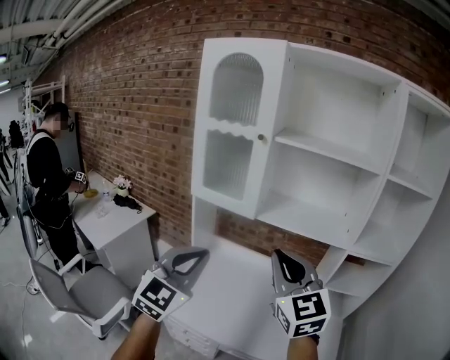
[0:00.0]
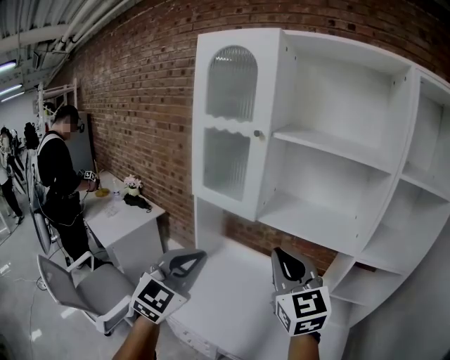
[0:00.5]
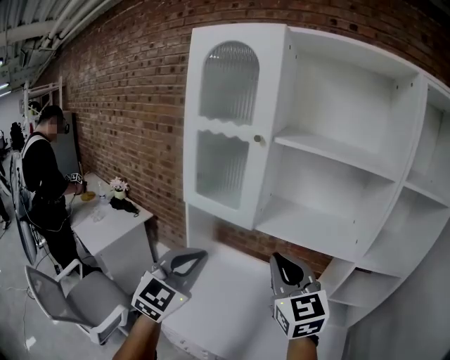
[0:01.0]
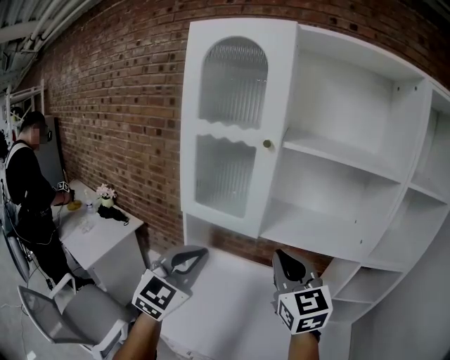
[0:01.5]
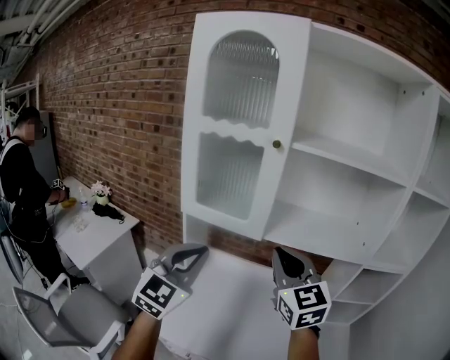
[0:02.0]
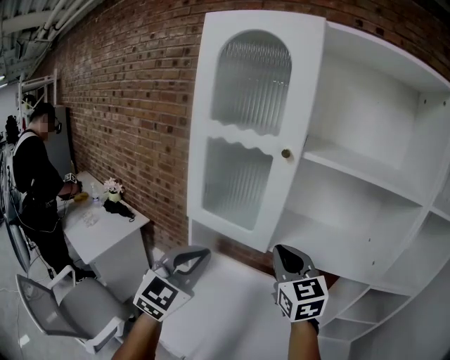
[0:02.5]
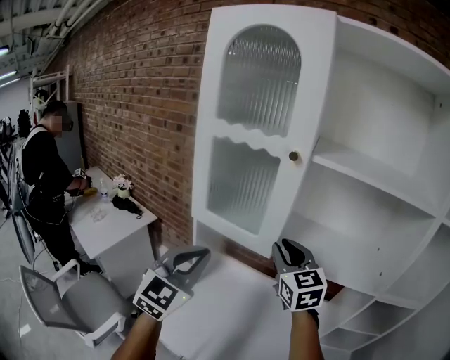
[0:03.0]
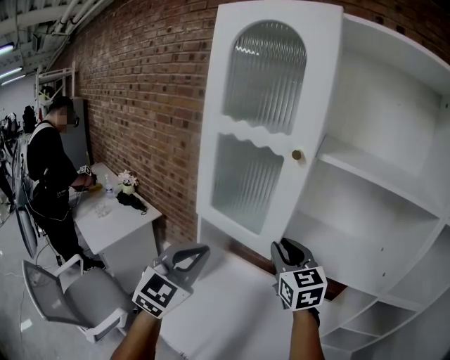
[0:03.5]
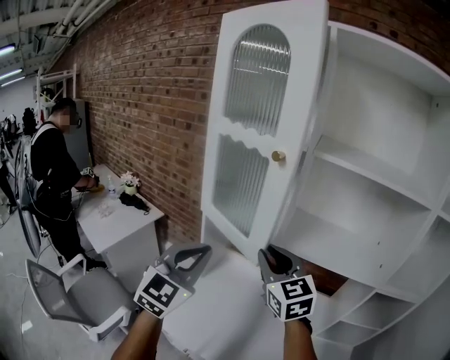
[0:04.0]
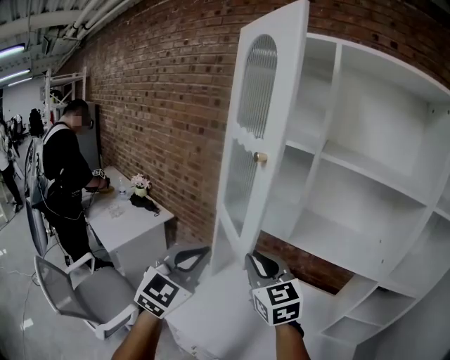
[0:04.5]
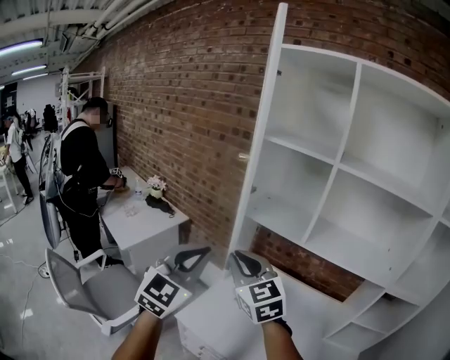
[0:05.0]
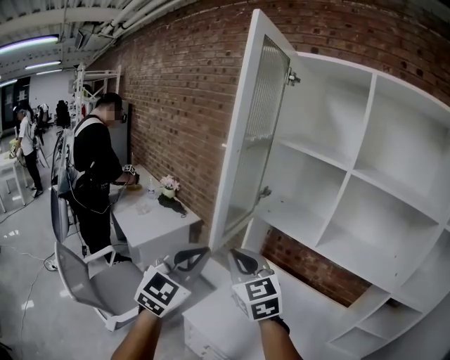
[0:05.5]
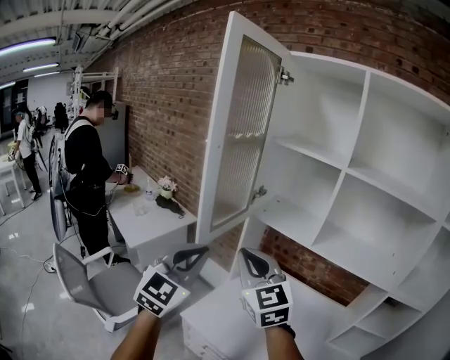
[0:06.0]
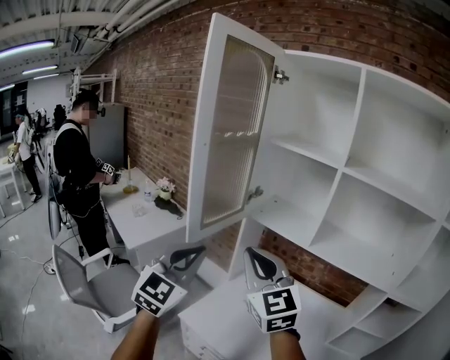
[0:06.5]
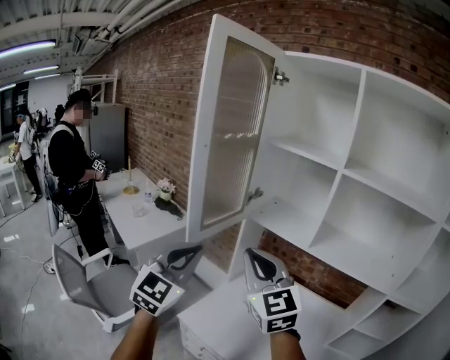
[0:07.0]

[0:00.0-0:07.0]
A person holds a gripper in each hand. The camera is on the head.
0:00.0 to 0:02.0: The two grippers go approximately 15 cm forward.
0:02.0 to 0:03.5: The right gripper is displaced forward by about 15 cm.
0:03.5 to 0:05.0: The left gripper goes some 15 cm backward and to the left. The right gripper moves to the left and backward, some 30 cm.
0:05.0 to 0:07.0: The right gripper goes some 5 cm upward.

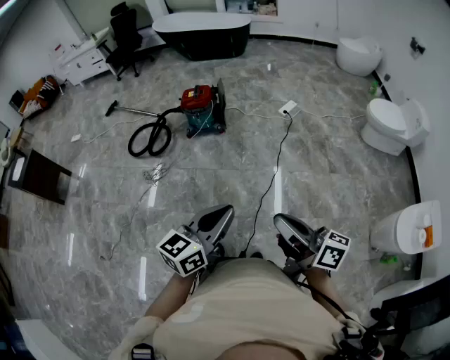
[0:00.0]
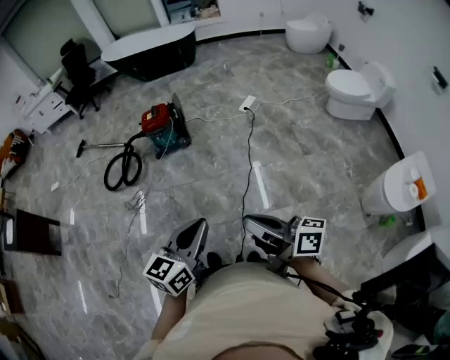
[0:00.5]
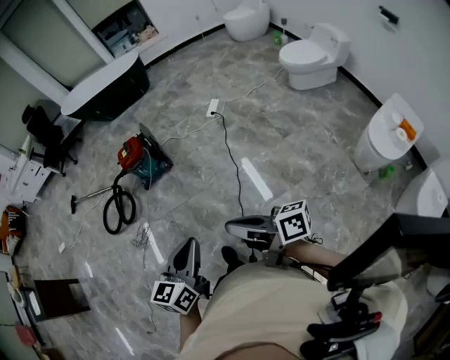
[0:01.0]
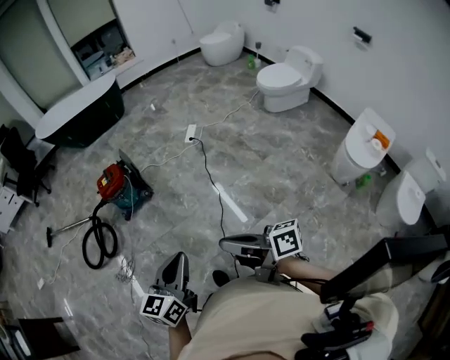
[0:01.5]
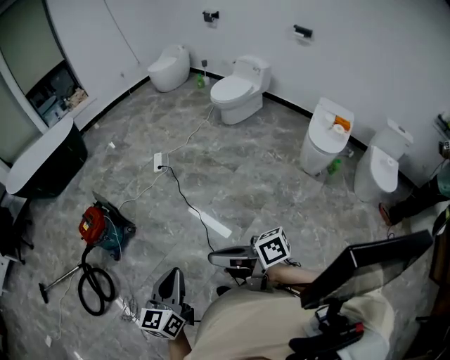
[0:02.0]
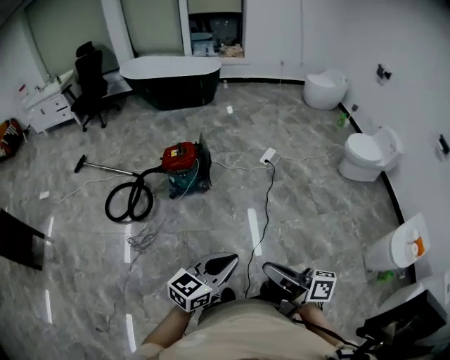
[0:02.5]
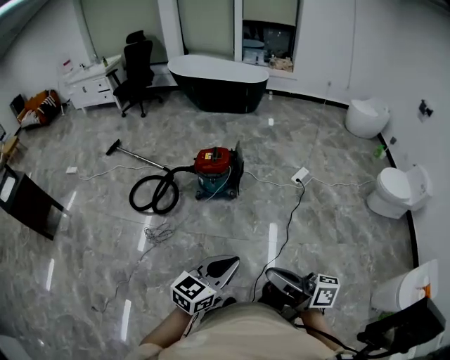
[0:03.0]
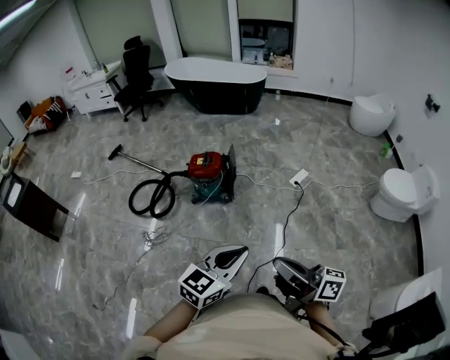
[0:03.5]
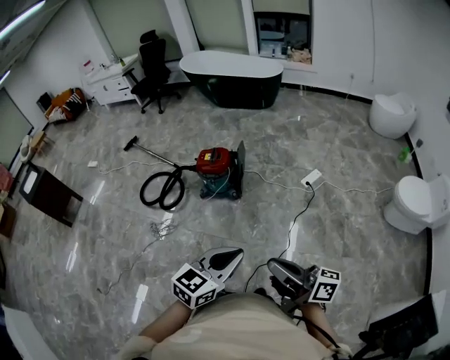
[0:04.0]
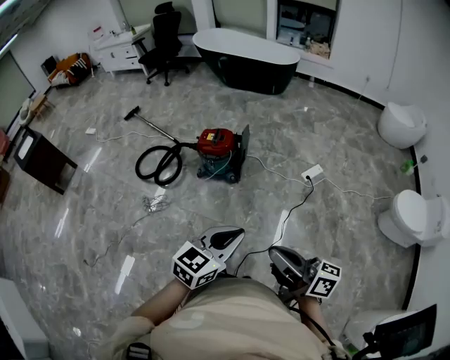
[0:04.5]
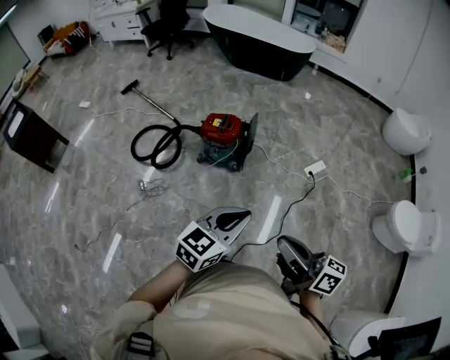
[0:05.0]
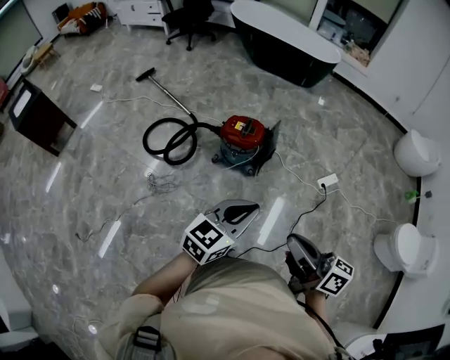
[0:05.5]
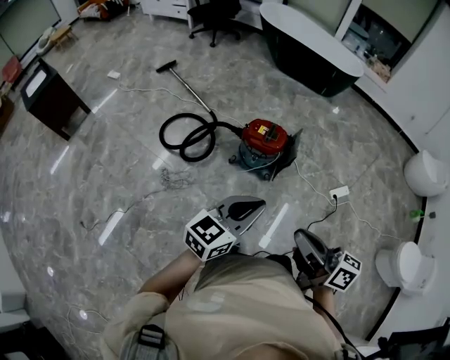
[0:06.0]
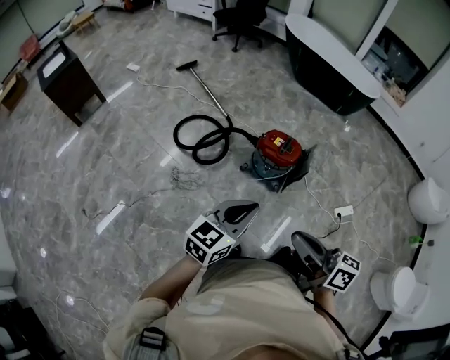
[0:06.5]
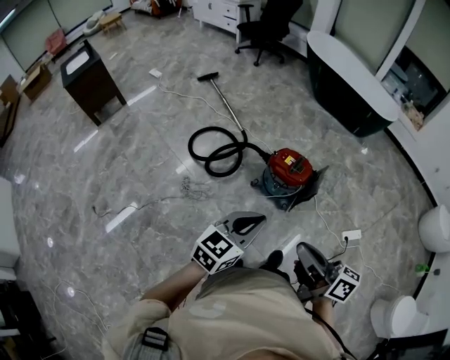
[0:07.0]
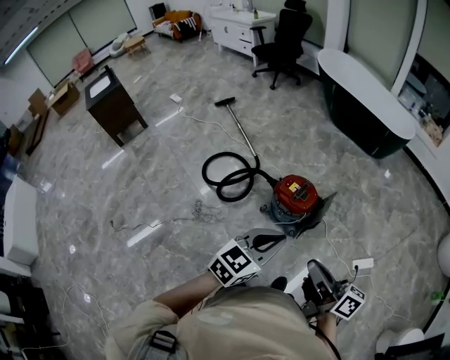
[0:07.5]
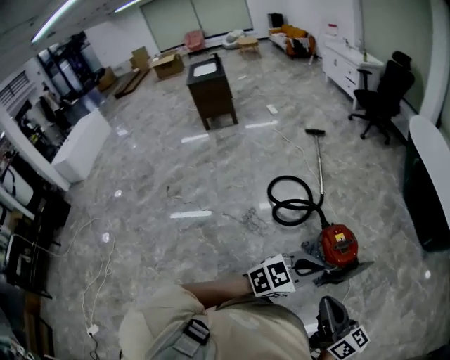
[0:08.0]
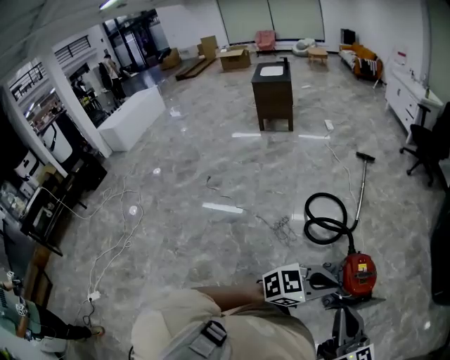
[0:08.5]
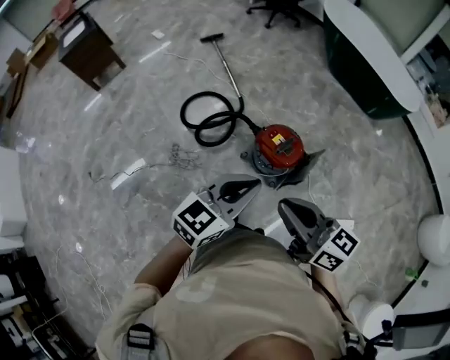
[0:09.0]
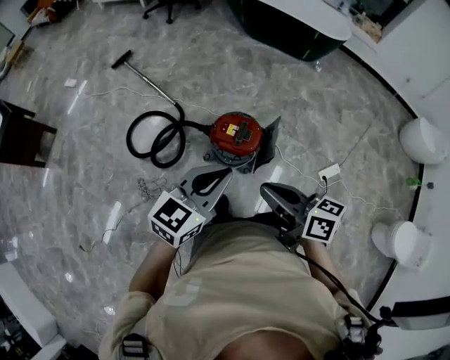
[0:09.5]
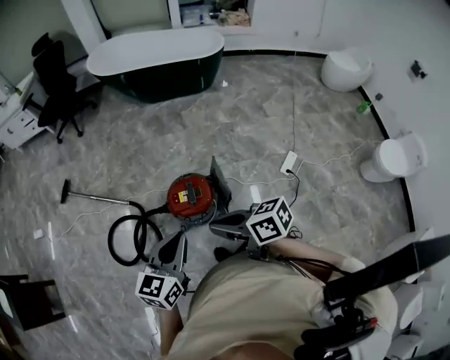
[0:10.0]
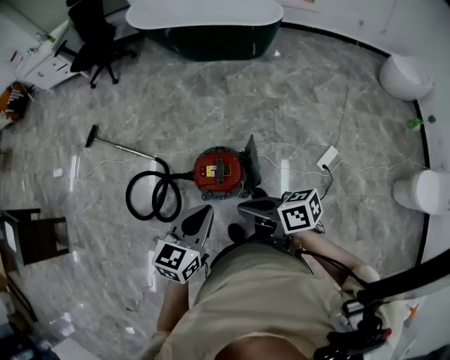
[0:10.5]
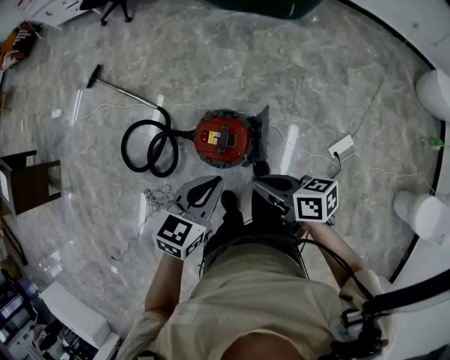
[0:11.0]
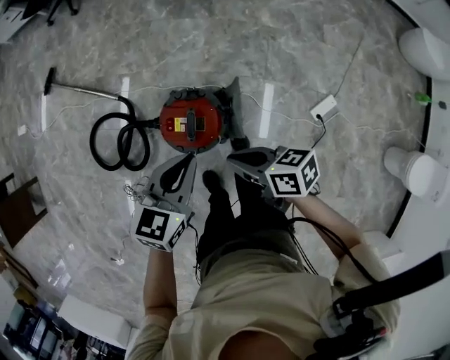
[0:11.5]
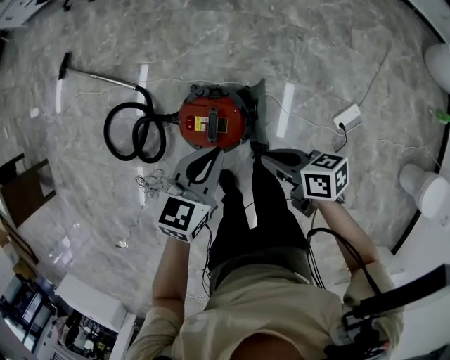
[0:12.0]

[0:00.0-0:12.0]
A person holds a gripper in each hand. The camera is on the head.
0:00.0 to 0:02.0: The left gripper goes approximately 15 cm forward and to the left, and turns by about 30 degrees, while the right gripper travels to the left and forward by roughly 15 cm.
0:02.0 to 0:04.0: The right gripper shifts by about 25 cm, and rotates approximately 30 degrees. The left gripper changes place by about 20 cm, and swivels about 30 degrees.
0:04.0 to 0:06.0: Both grippers travel together forward and to the left, approximately 35 cm.
0:06.0 to 0:08.0: The left gripper shifts by roughly 25 cm, and swivels roughly 30 degrees. The right gripper changes place by approximately 20 cm, and changes its angle by some 30 degrees.
0:08.0 to 0:10.0: The right gripper changes place by about 25 cm, and turns by some 40 degrees. The left gripper shifts by some 20 cm, and swivels roughly 30 degrees.
0:10.0 to 0:12.0: Both grippers travel together downward, forward and to the right, approximately 35 cm. The right gripper turns by roughly 20 degrees.

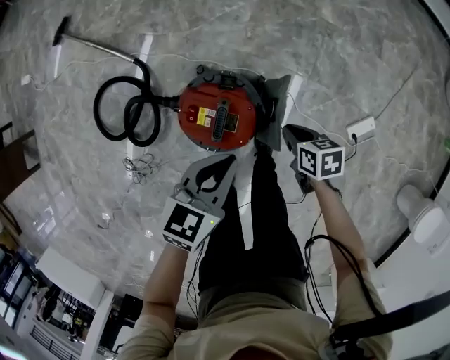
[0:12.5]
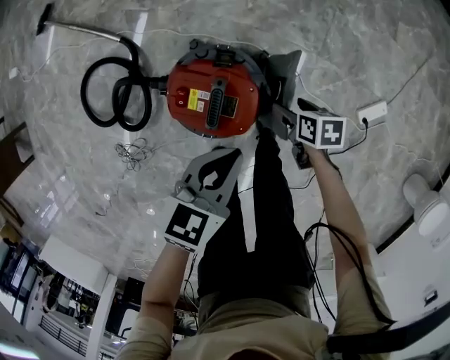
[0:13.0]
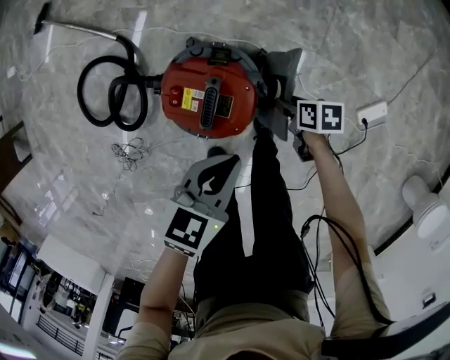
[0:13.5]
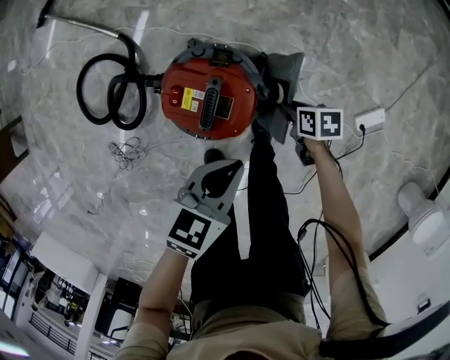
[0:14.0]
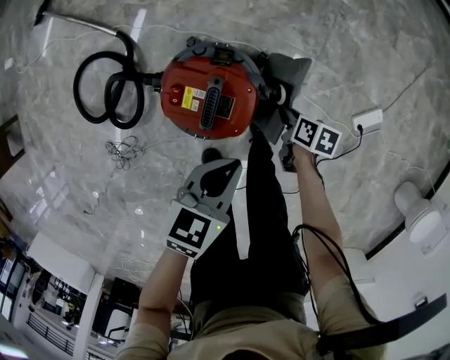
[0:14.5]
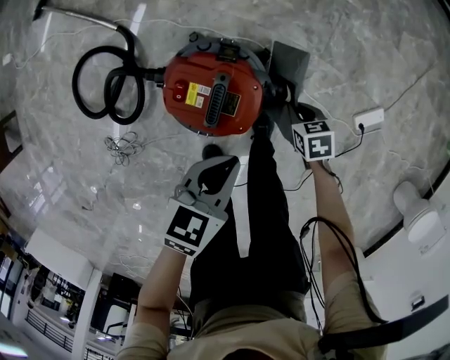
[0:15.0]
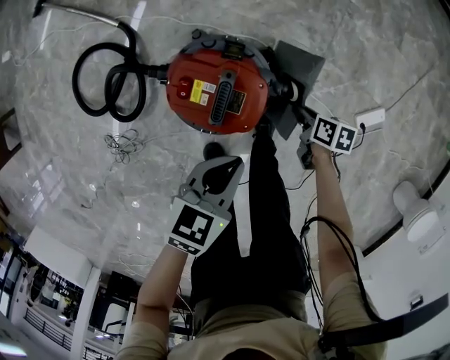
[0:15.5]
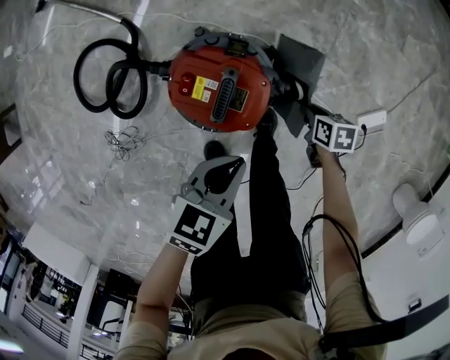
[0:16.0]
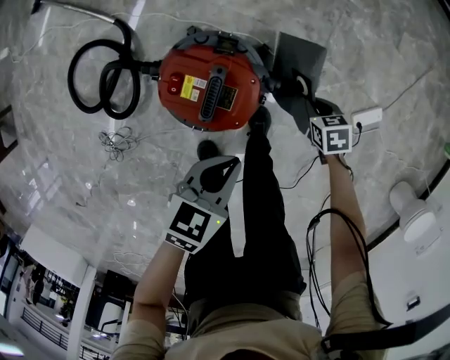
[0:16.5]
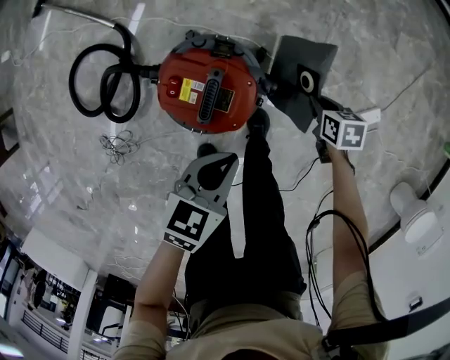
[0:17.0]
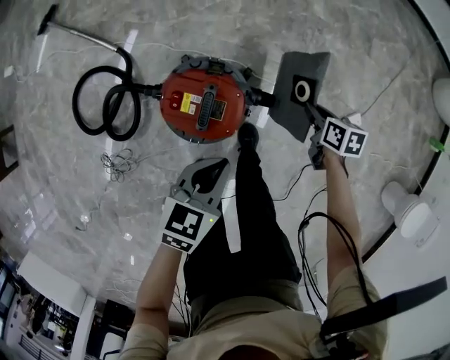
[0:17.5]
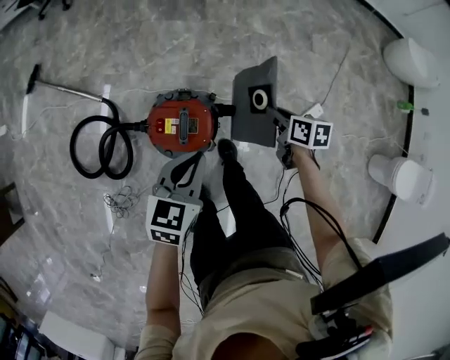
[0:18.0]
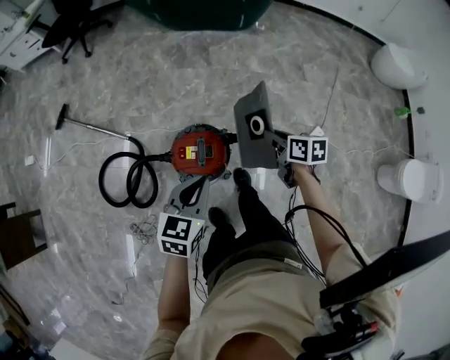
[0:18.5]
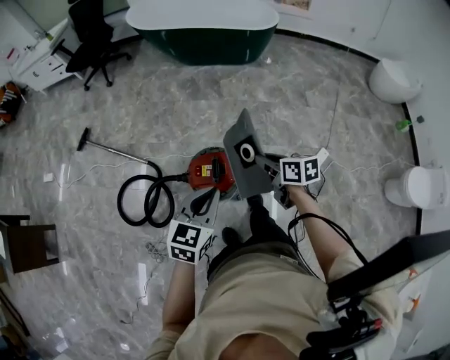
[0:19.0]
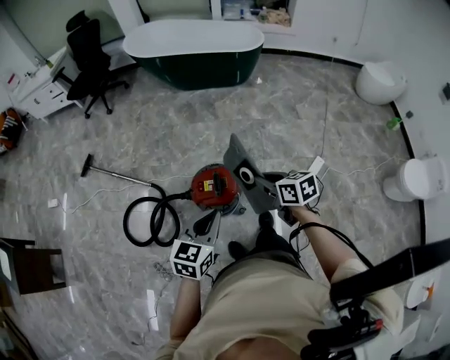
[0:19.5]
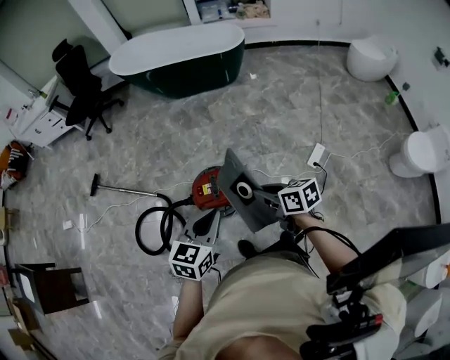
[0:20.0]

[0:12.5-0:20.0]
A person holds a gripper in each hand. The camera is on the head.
0:12.5 to 0:14.5: The right gripper is displaced downward by about 15 cm, swivels some 20 degrees, and opens, then closes again. Meanwhile the left gripper is displaced downward by approximately 10 cm.
0:14.5 to 0:16.5: The right gripper moves to the right, about 5 cm, and twists roughly 40 degrees counterclockwise, seen from behind.
0:16.5 to 0:18.0: Both grippers move upward, approximately 25 cm. The right gripper swivels some 40 degrees.
0:18.0 to 0:20.0: The right gripper heads backward and upward, covering about 35 cm, and rotates approximately 20 degrees. Meanwhile the left gripper shifts roughly 25 cm upward and backward.
